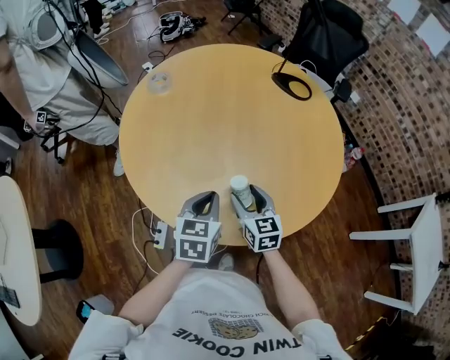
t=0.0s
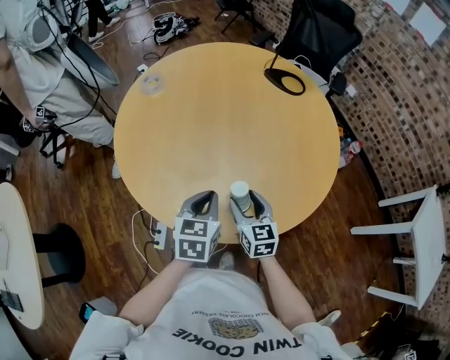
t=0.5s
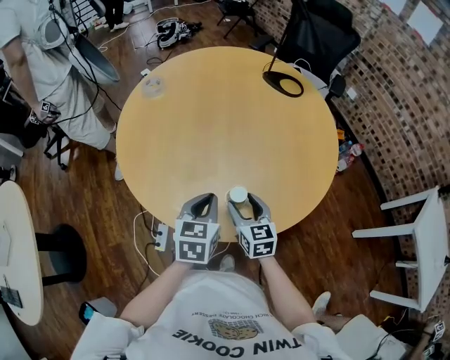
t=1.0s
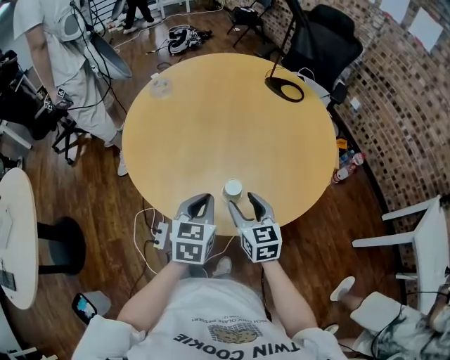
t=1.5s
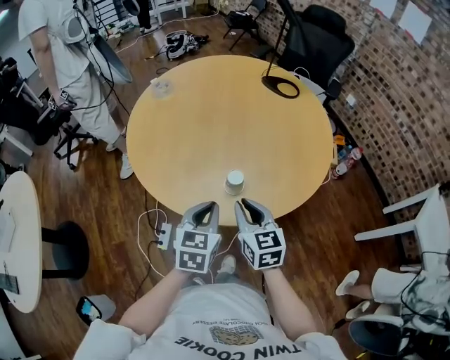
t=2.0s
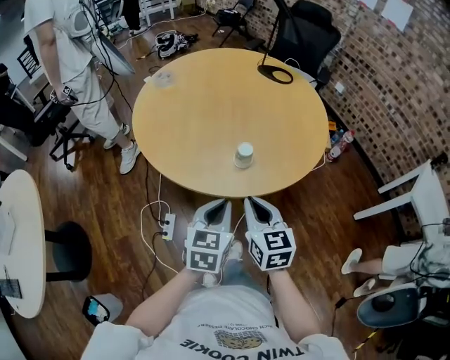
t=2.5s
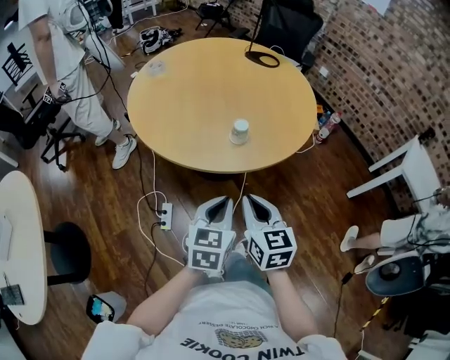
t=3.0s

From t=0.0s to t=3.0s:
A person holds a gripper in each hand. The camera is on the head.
From t=0.0s to t=1.5s: Both grippers travel together backward, some 5 cm.
From t=1.5s to t=3.0s: Both grippers travel together backward, roughly 25 cm. The right gripper closes up.

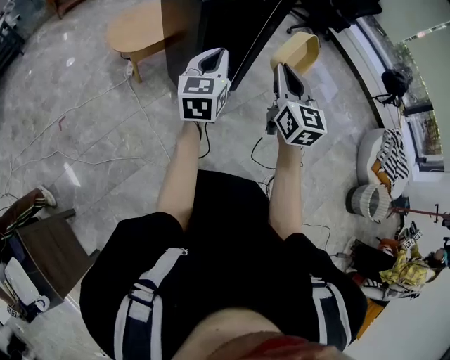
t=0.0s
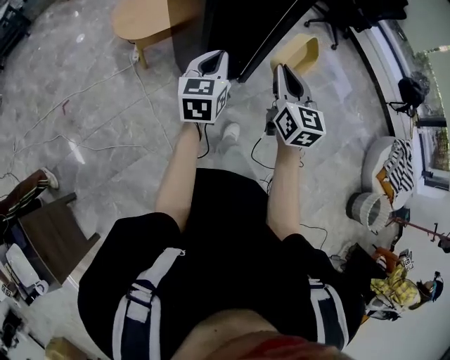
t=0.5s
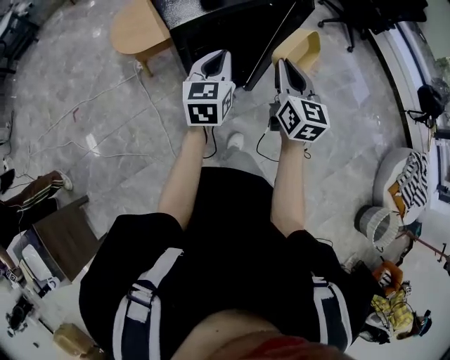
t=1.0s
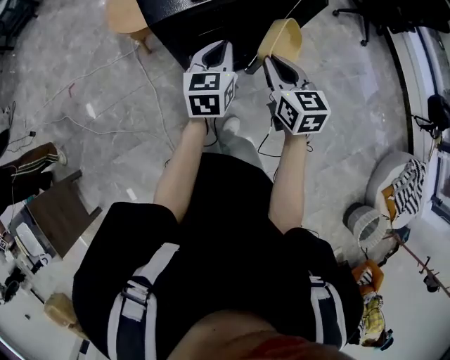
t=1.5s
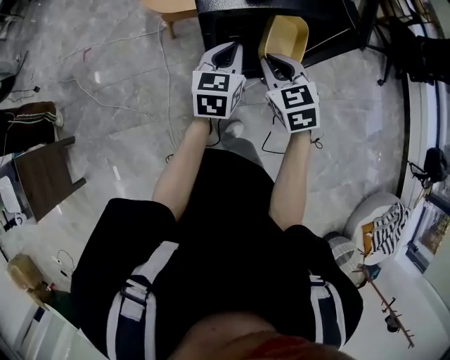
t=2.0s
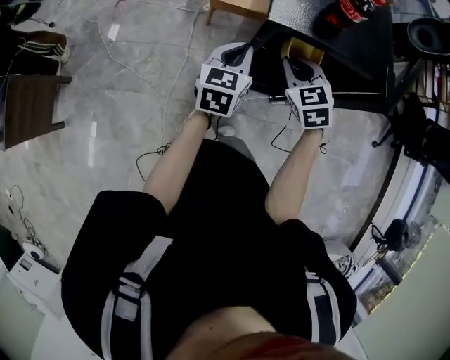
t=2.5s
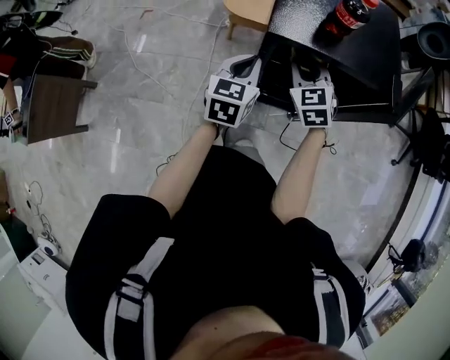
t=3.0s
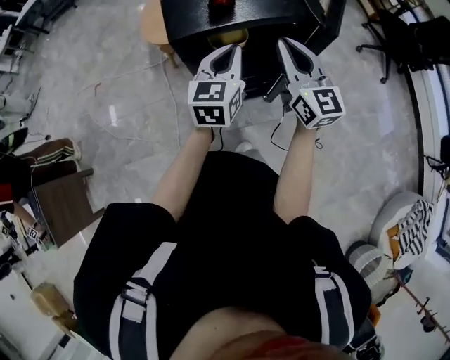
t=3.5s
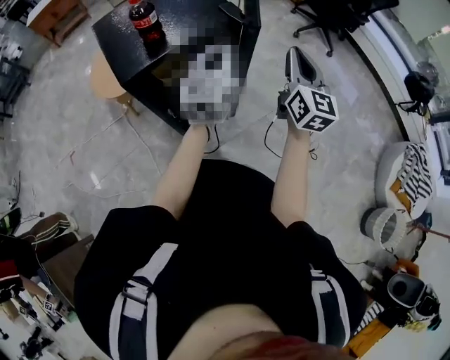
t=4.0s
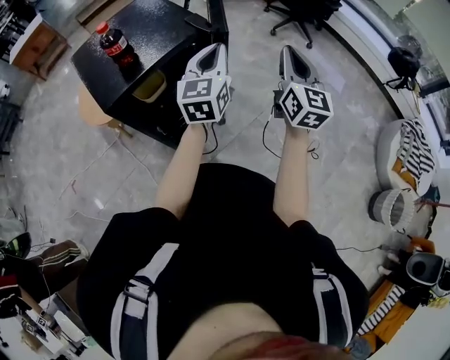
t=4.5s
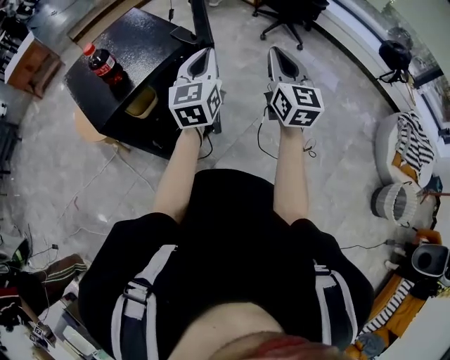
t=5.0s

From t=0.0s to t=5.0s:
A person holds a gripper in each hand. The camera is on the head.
From t=0.0s to t=2.5s: The left gripper ends up roughly 25 cm from where it was, and turns by some 40 degrees; the right gripper shifts by some 35 cm, and tips its fingers downward by about 30 degrees.
From t=2.5s to t=5.0s: The right gripper ends up some 40 cm from where it was, and points its fingers approximately 40 degrees further upward. The left gripper changes place by approximately 35 cm, and swivels some 40 degrees.

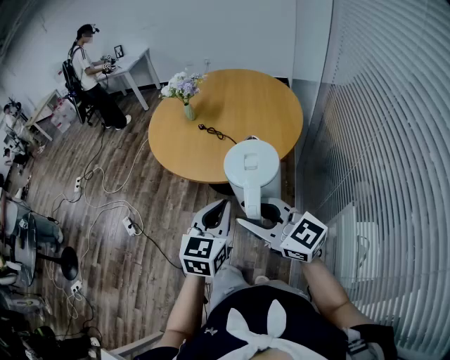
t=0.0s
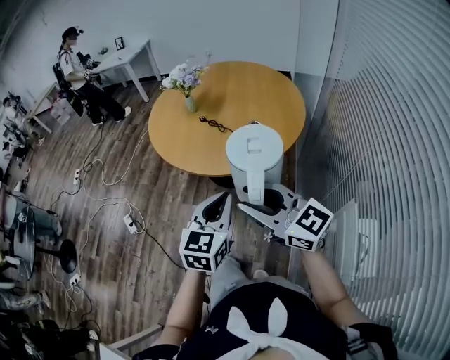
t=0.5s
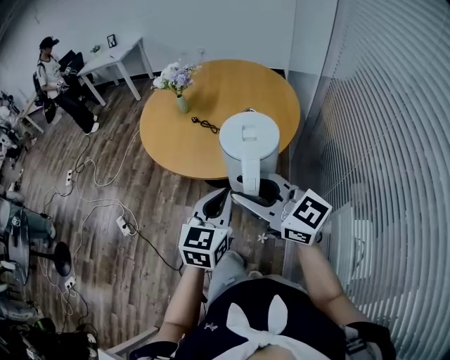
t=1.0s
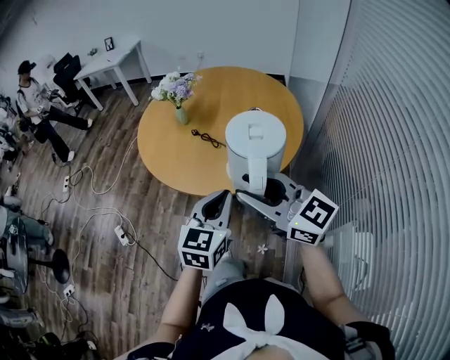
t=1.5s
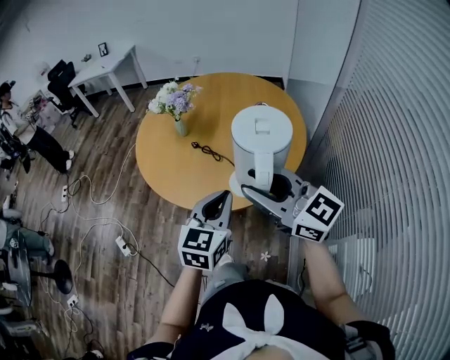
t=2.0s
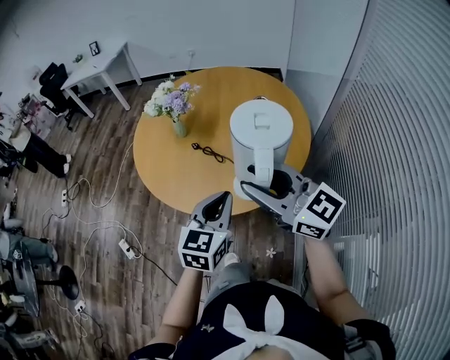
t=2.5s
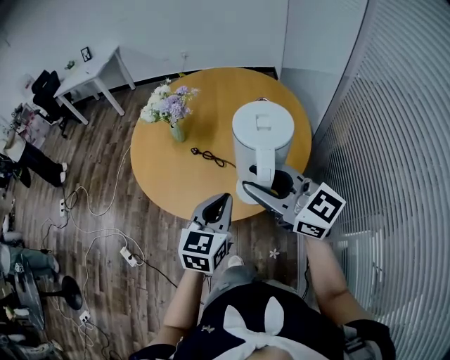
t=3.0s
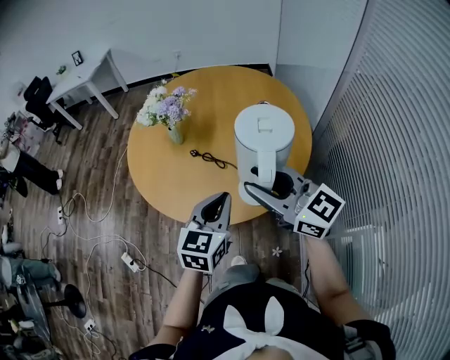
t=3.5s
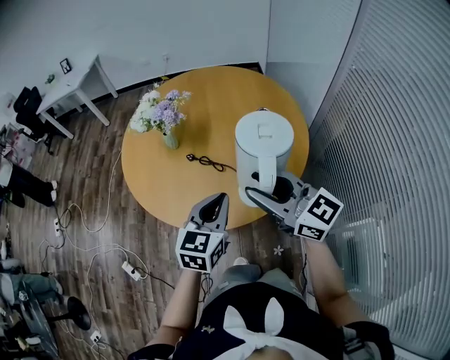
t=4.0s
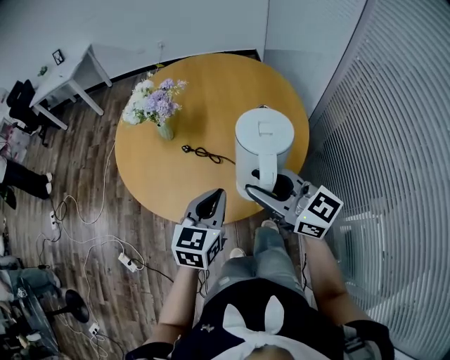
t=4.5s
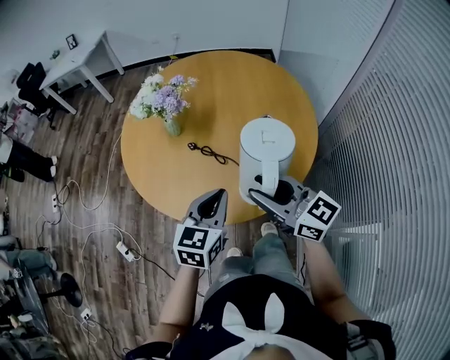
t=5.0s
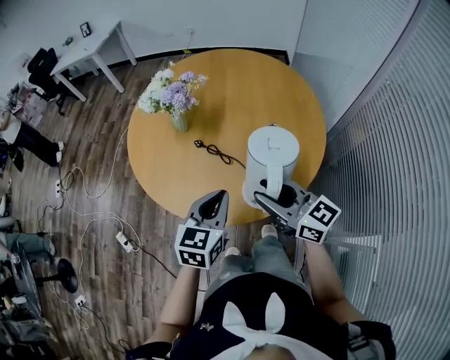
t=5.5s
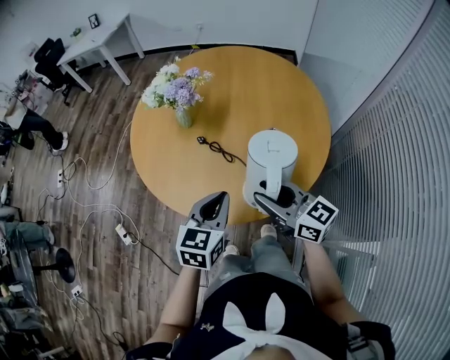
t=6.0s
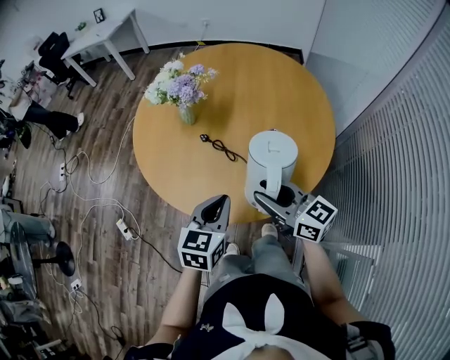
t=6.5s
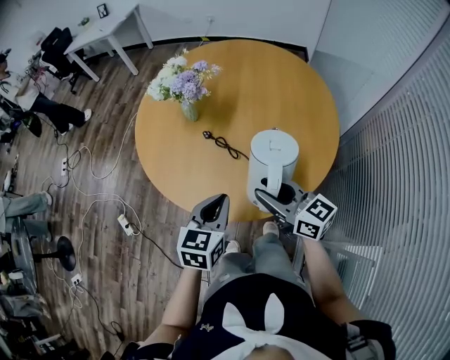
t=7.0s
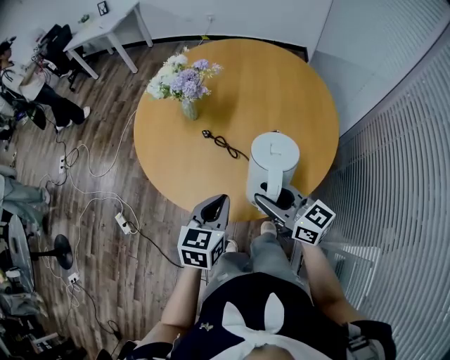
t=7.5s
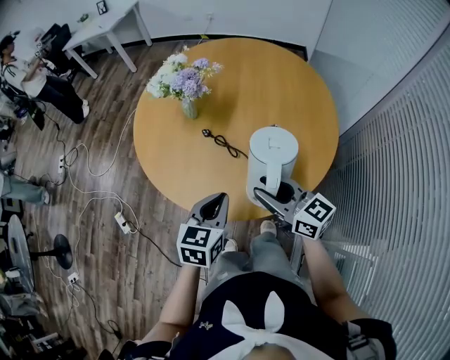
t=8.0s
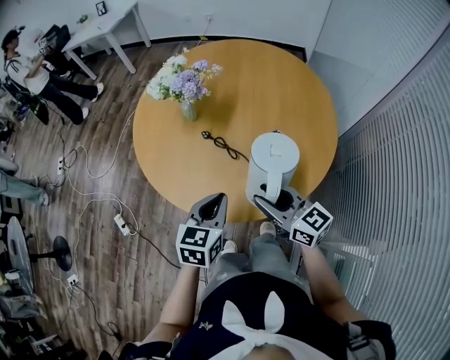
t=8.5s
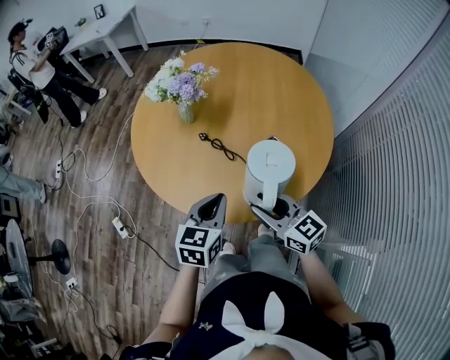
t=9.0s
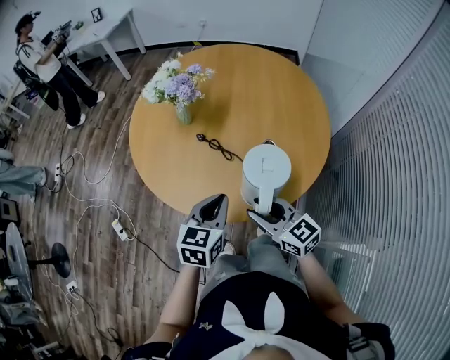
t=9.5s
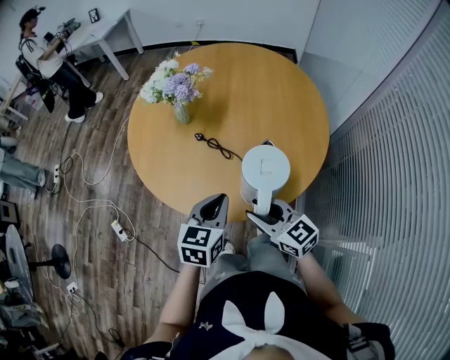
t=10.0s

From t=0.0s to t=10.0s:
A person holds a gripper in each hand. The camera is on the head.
From t=0.0s to t=2.0s: The grippers both shift forward by approximately 20 cm.
From t=2.0s to t=4.0s: The left gripper goes some 10 cm forward. Meanwhile the right gripper is displaced forward and downward by roughly 10 cm.
From t=4.0s to t=6.0s: The right gripper moves downward, approximately 10 cm.
From t=6.0s to t=8.0s: There are only small adjustments of the grippers.
From t=8.0s to t=10.0s: The right gripper is displaced backward by some 5 cm.

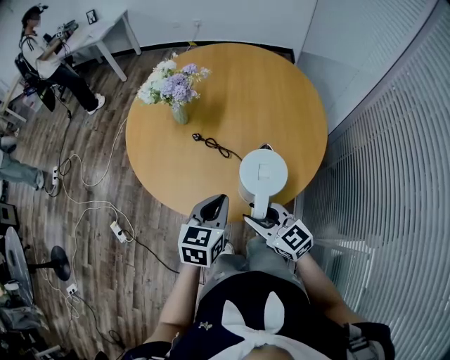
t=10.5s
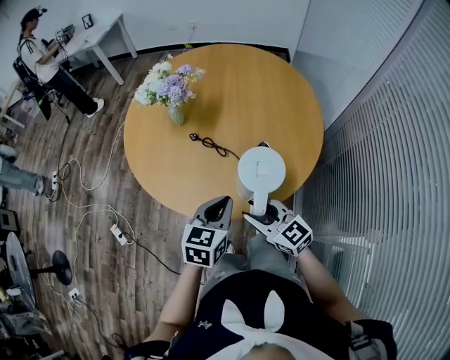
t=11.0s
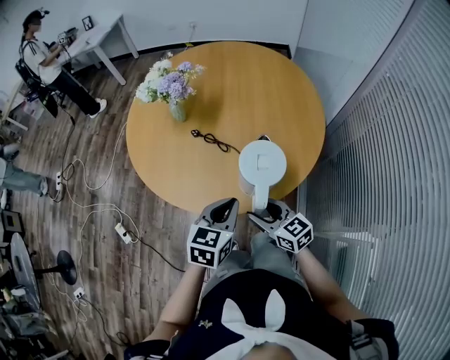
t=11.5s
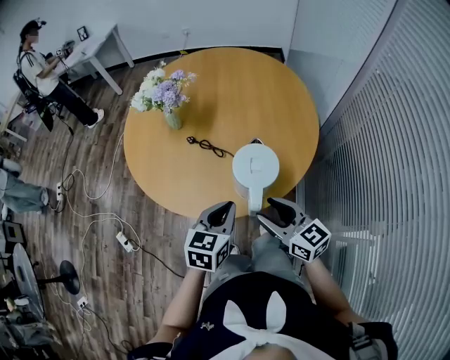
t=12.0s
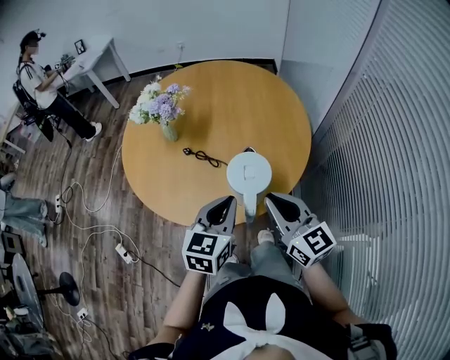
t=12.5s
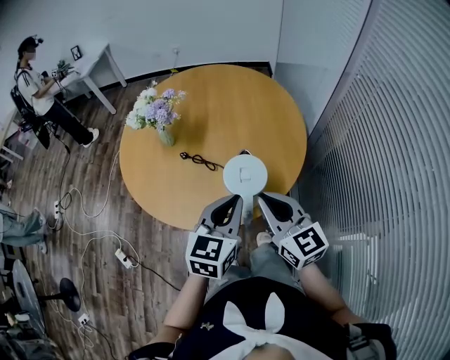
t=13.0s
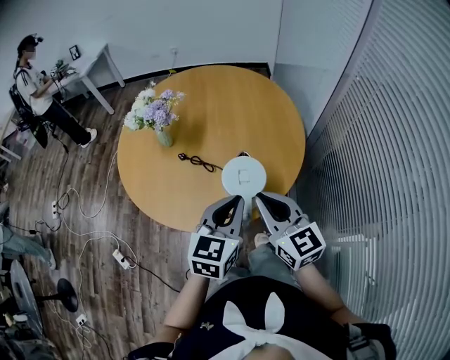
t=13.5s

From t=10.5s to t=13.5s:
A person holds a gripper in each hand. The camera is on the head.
From t=10.5s to t=12.0s: The right gripper heads to the right, covering about 5 cm.
From t=12.0s to t=13.5s: The right gripper travels upward by approximately 10 cm, turns by some 20 degrees, and closes, while the left gripper goes roughly 10 cm upward and to the right.

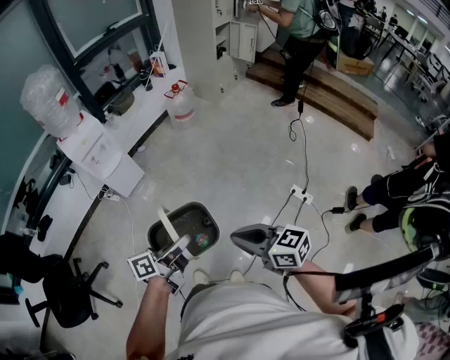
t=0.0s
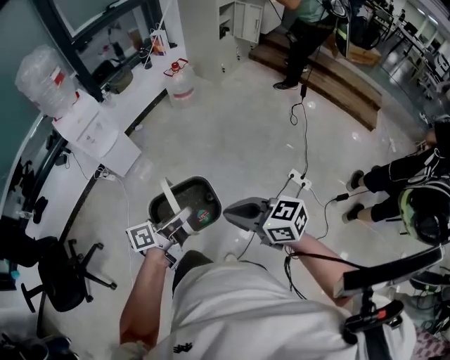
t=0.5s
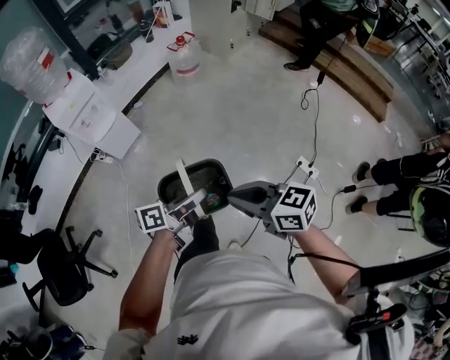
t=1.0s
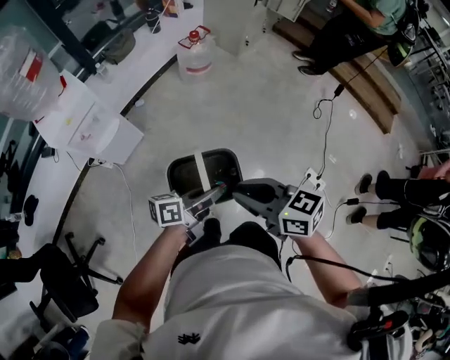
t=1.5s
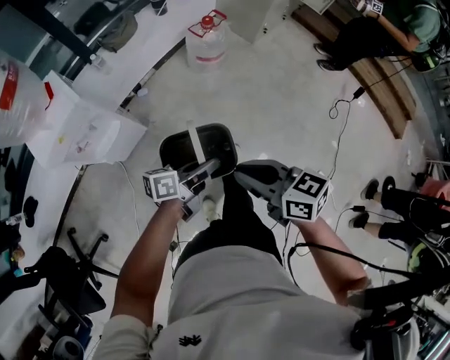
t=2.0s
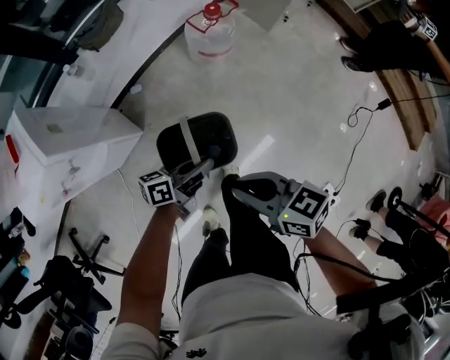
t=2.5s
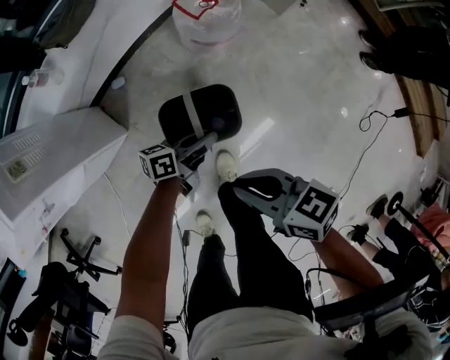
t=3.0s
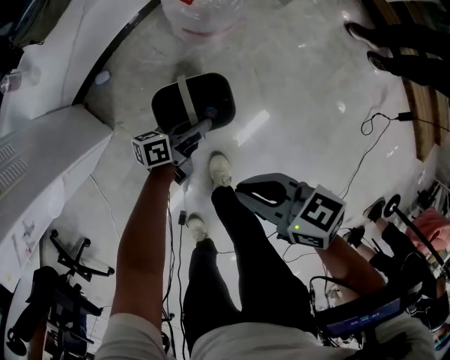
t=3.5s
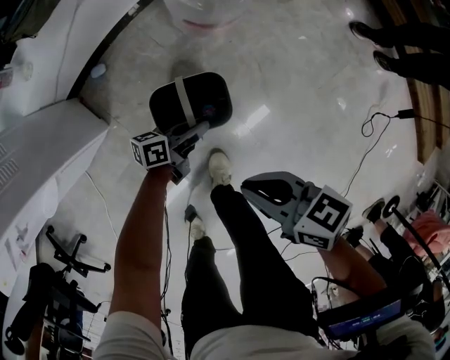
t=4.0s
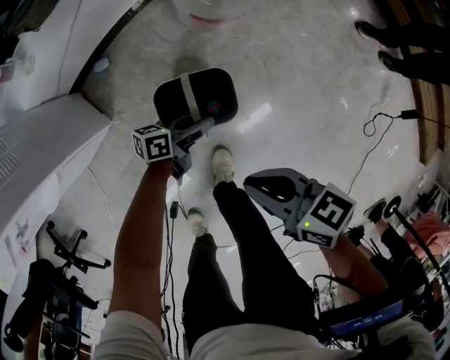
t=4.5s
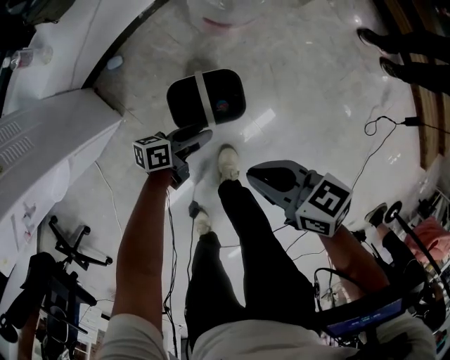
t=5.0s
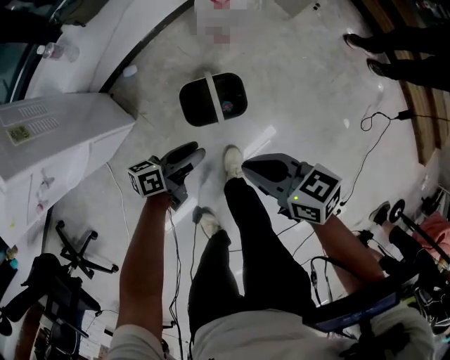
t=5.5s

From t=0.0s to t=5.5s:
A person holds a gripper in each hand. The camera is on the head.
From t=0.0s to t=2.0s: The two grippers travel together, forward, roughly 50 cm.
From t=2.0s to t=3.5s: The grippers both shift downward by about 35 cm. The right gripper swivels some 20 degrees.
From t=3.5s to t=5.5s: The left gripper ends up roughly 20 cm from where it was, and opens up. Meanwhile the right gripper changes place by about 5 cm.
